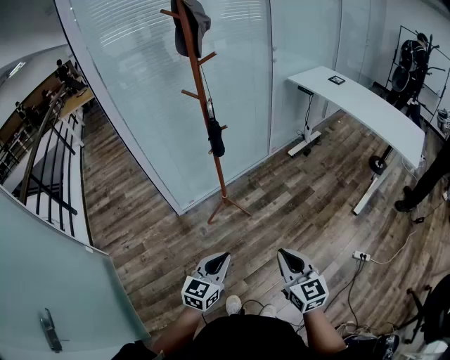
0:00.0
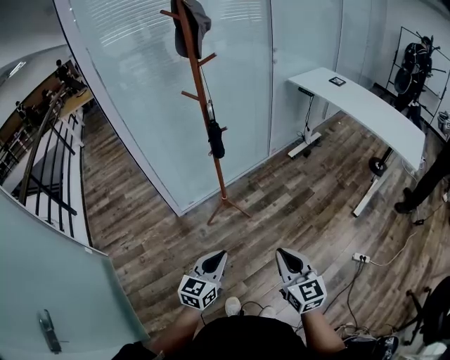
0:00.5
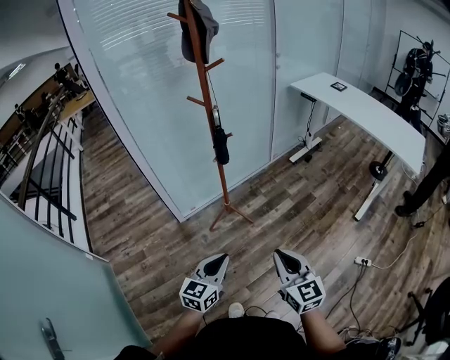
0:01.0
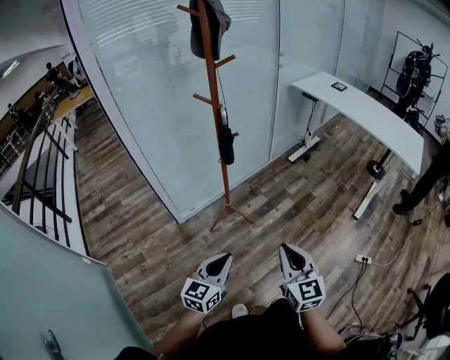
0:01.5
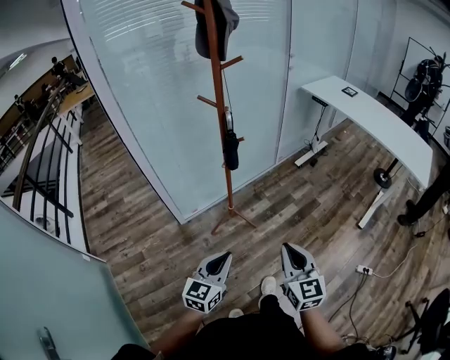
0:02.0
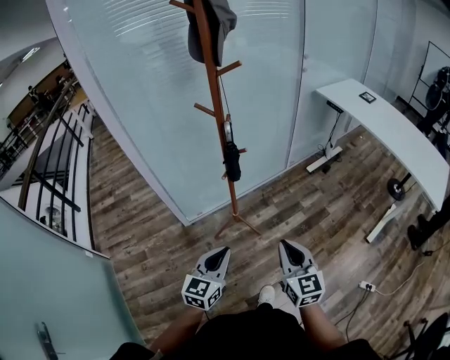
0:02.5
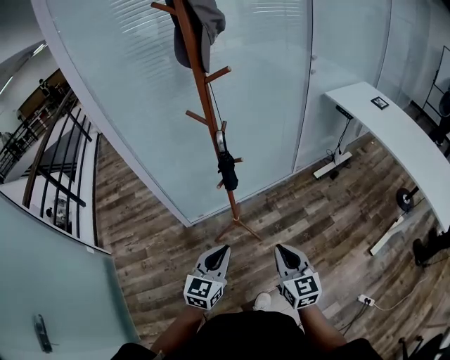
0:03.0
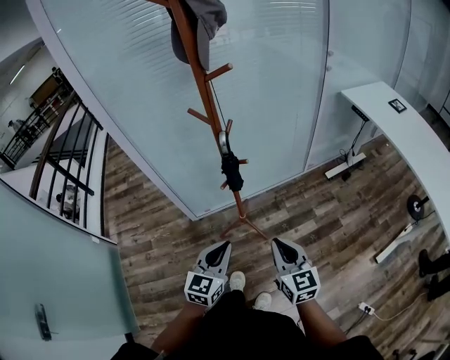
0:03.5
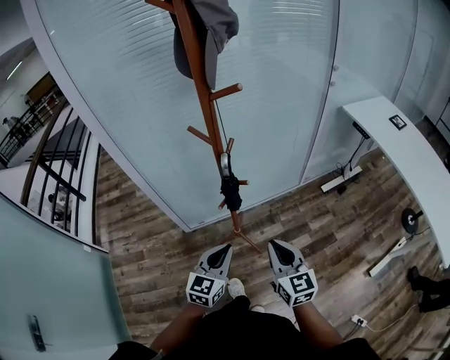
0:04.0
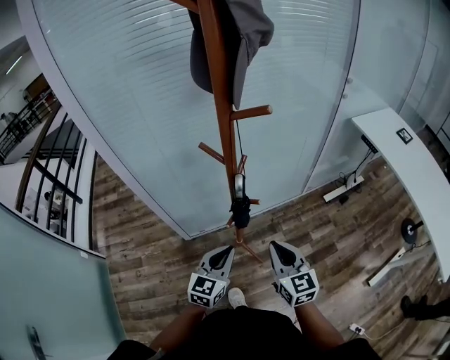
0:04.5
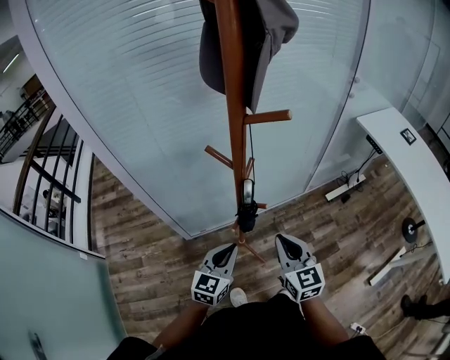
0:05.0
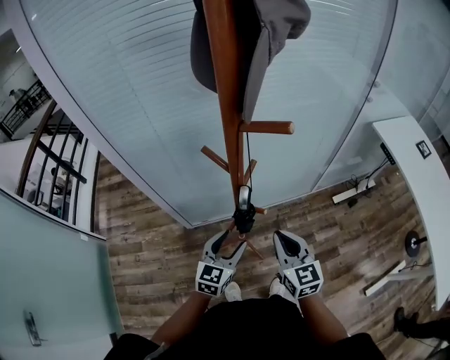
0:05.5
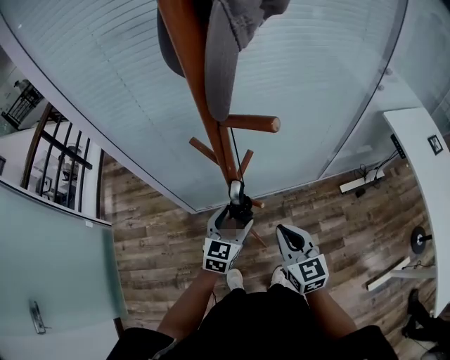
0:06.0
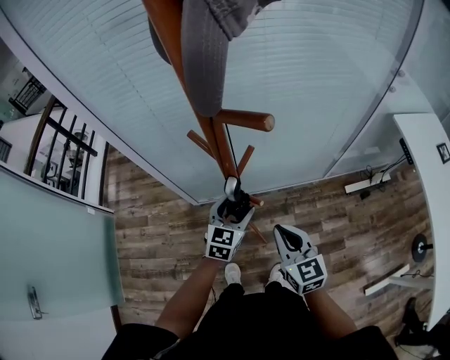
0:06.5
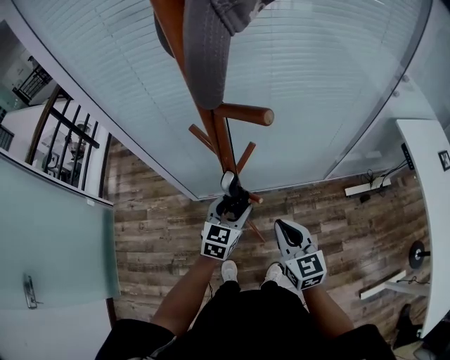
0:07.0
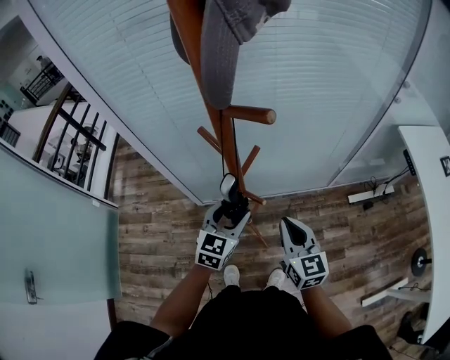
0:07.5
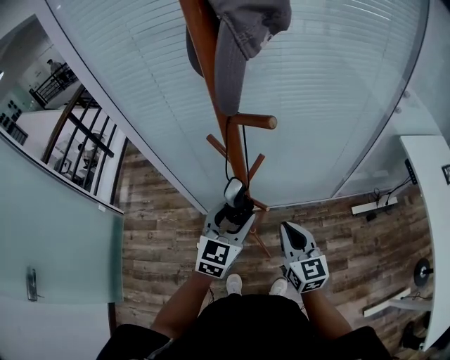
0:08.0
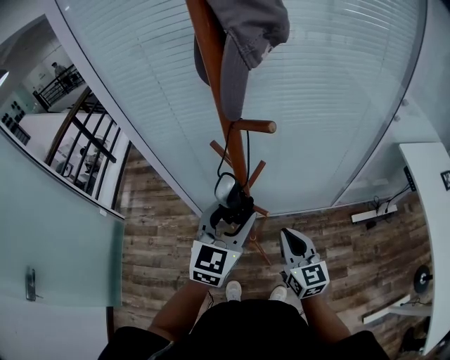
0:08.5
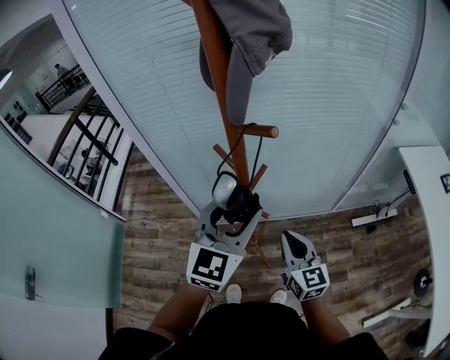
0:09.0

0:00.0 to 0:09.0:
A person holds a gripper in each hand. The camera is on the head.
0:00.0 to 0:02.0: Both grippers move forward and to the left, some 10 cm.
0:02.0 to 0:04.5: Both grippers travel together forward, some 35 cm. The right gripper swivels some 20 degrees.
0:04.5 to 0:07.0: The right gripper travels forward by some 10 cm. The left gripper travels forward by about 15 cm, and opens its fingers.
0:07.0 to 0:09.0: The left gripper heads upward, covering roughly 25 cm, and changes its angle by some 20 degrees.

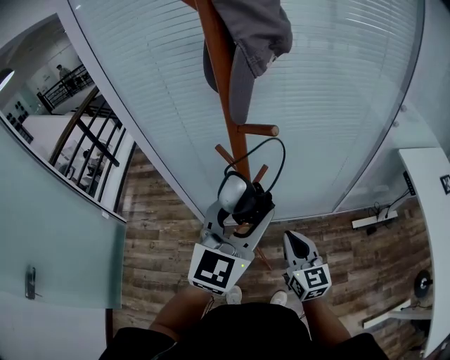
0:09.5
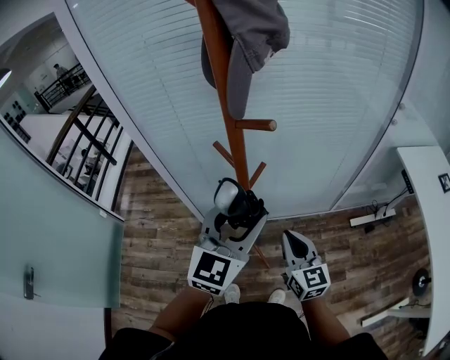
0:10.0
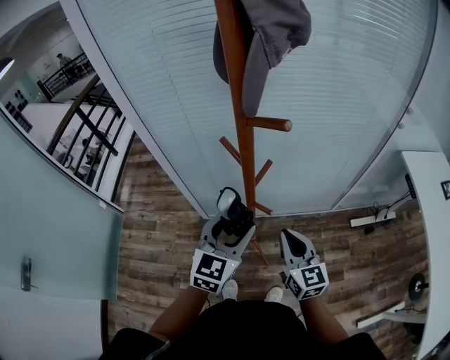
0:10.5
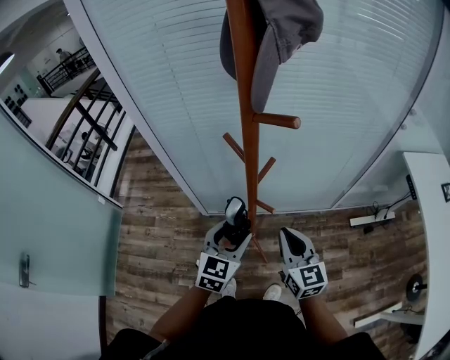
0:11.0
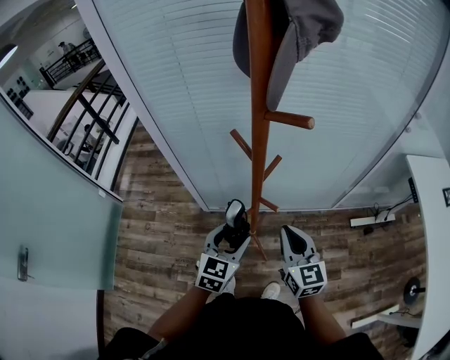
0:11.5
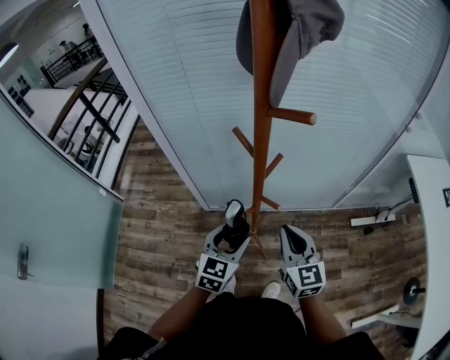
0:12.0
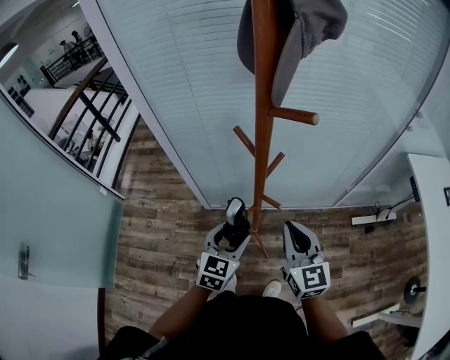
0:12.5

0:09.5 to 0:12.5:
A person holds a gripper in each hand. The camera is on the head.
0:09.5 to 0:11.0: The left gripper goes about 20 cm downward, and swivels approximately 20 degrees.
0:11.0 to 0:12.5: The grippers stay close to where they were, moving slightly.

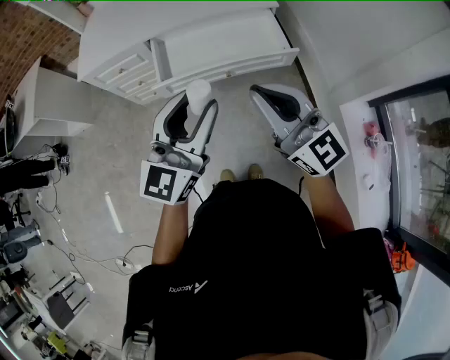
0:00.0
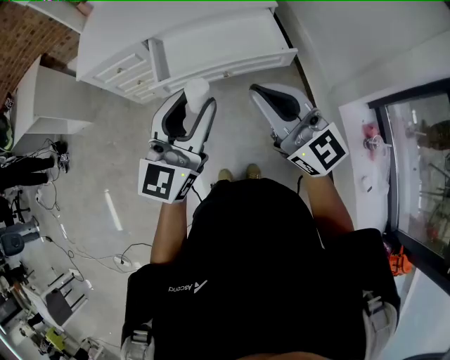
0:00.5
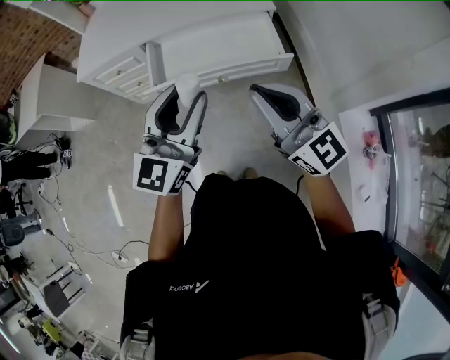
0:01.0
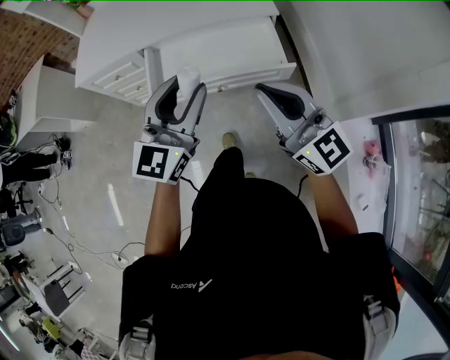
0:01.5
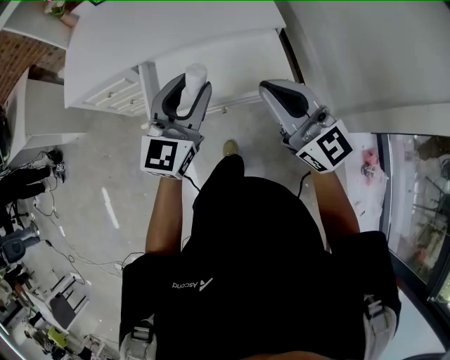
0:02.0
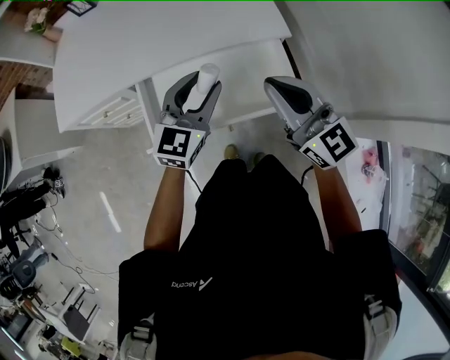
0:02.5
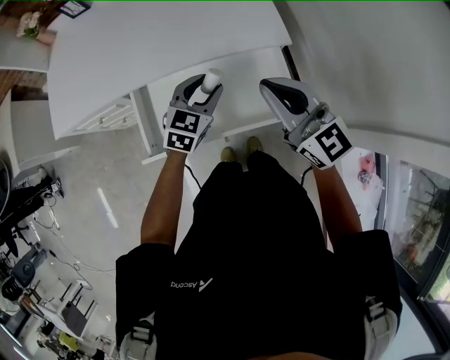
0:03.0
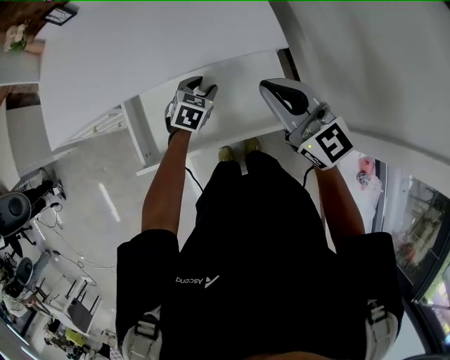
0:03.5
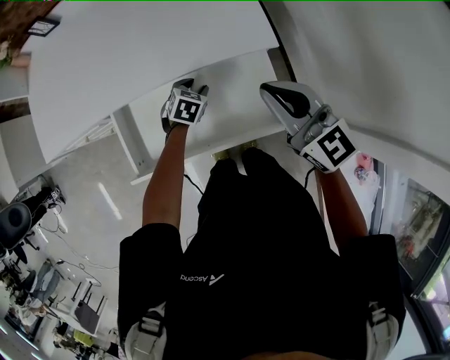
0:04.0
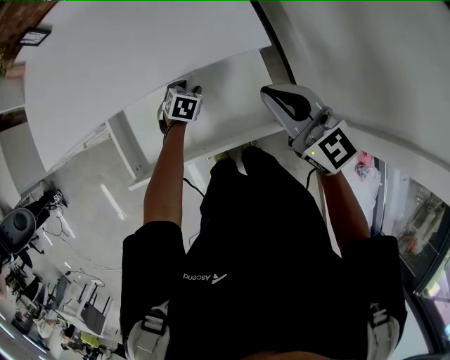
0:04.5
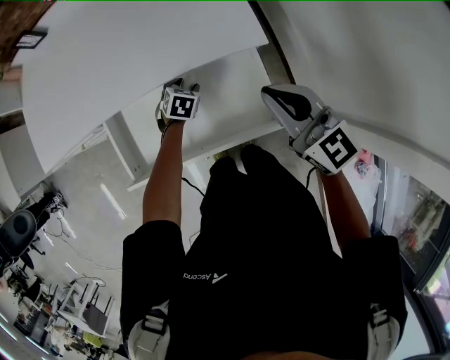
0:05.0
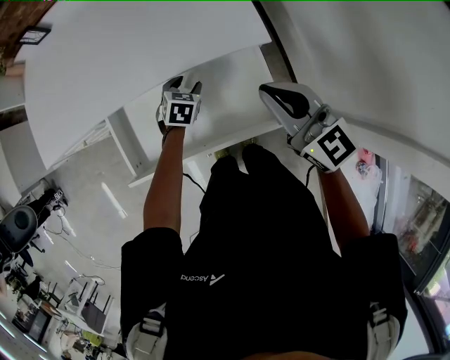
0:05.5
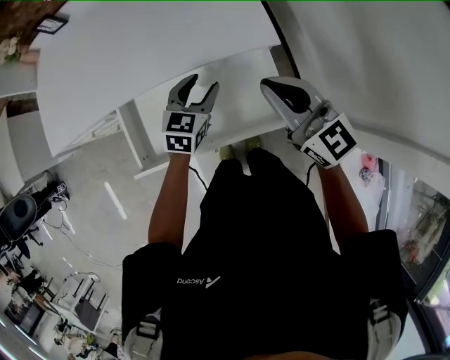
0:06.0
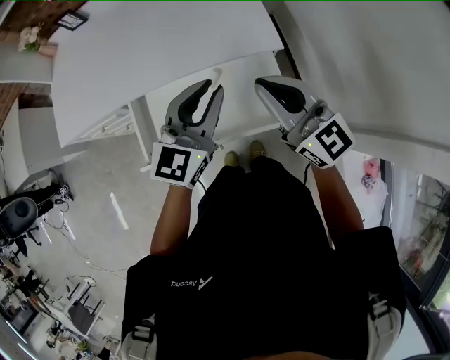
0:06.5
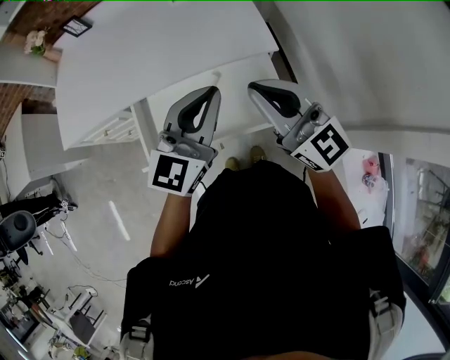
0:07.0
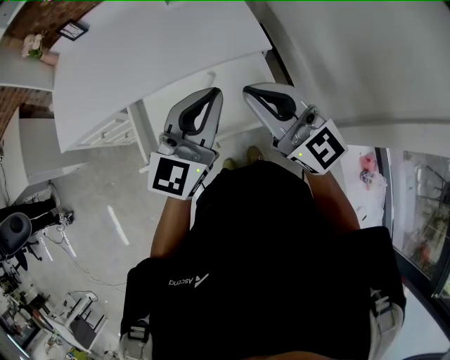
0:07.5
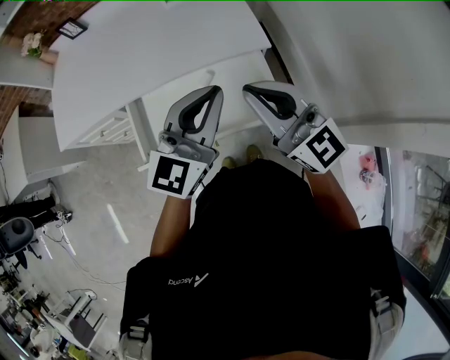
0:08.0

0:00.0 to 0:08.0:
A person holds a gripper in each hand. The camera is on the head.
0:00.0 to 0:02.0: Both grippers travel together forward, approximately 25 cm.
0:02.0 to 0:04.0: The left gripper is displaced downward and forward by approximately 40 cm, and tips its fingers downward by roughly 60 degrees. Meanwhile the right gripper goes about 25 cm forward and downward.
0:04.0 to 0:06.0: The left gripper is displaced upward by about 15 cm, and changes its angle by approximately 30 degrees.
0:06.0 to 0:08.0: The right gripper goes about 15 cm backward and upward. Meanwhile the left gripper travels upward and backward by approximately 30 cm, tilts its fingers about 30 degrees upward, and closes.

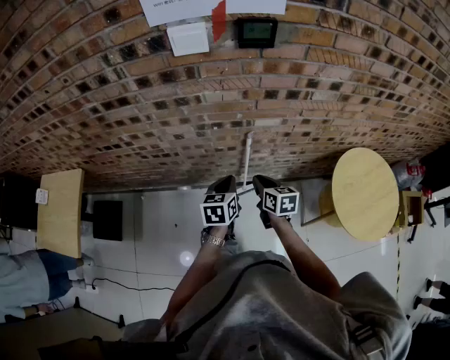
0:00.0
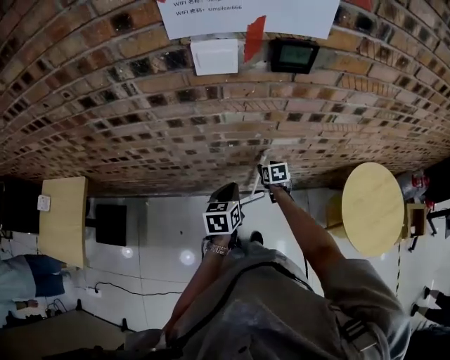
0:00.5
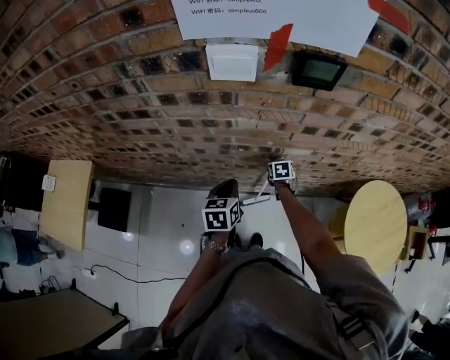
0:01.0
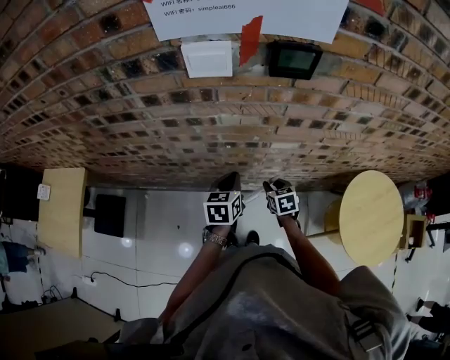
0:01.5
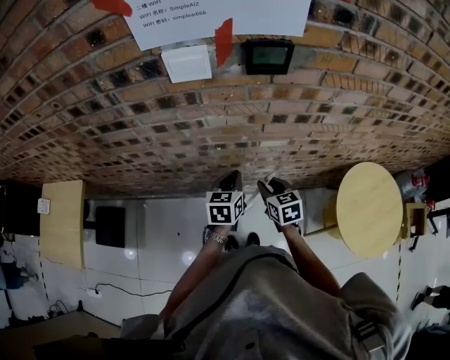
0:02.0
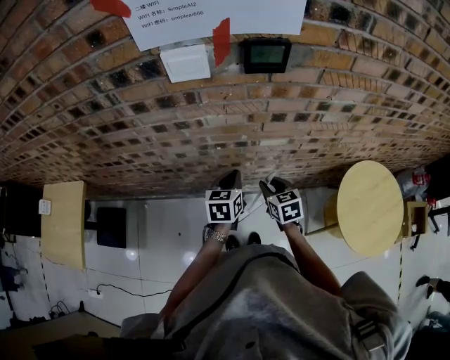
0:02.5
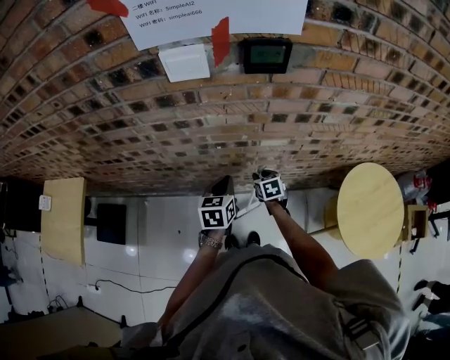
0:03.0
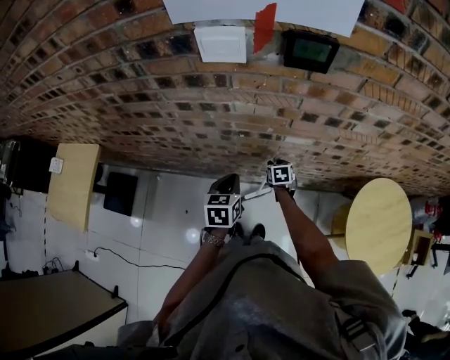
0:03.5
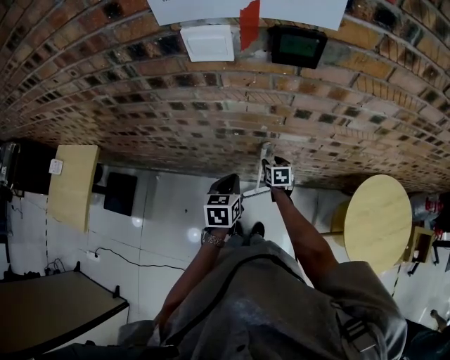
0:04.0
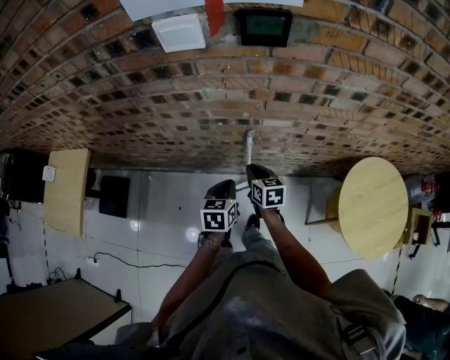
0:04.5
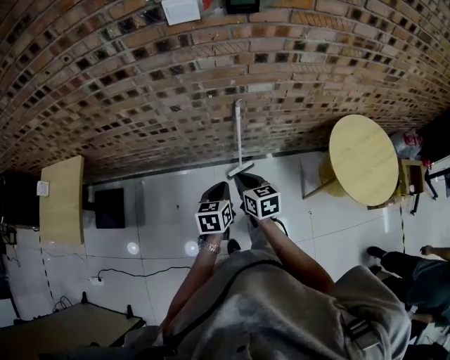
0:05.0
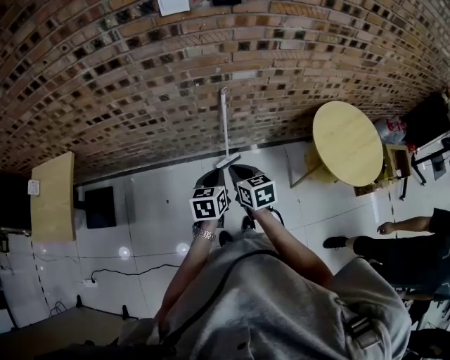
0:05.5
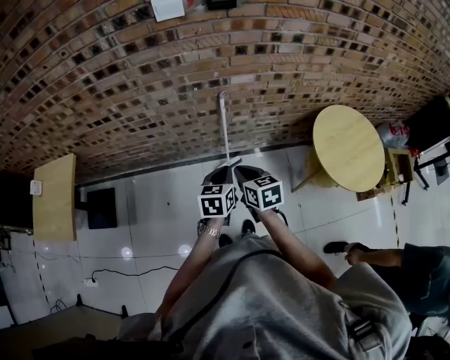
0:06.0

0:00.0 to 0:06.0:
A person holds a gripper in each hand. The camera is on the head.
0:00.0 to 0:02.0: Both grippers travel together forward, some 10 cm. The right gripper opens its fingers.
0:02.0 to 0:04.0: The right gripper moves downward and forward, some 20 cm, and opens, while the left gripper ends up roughly 5 cm from where it was.
0:04.0 to 0:06.0: The left gripper shifts roughly 25 cm backward. The right gripper shifts about 40 cm backward and upward, and closes its fingers.
